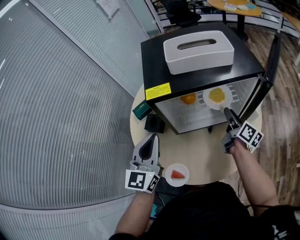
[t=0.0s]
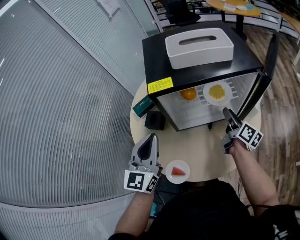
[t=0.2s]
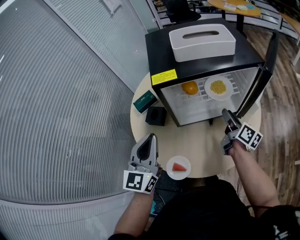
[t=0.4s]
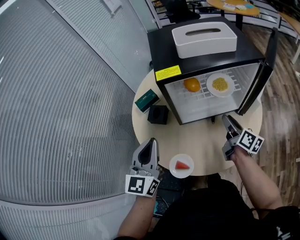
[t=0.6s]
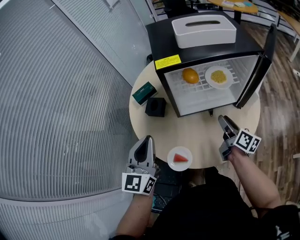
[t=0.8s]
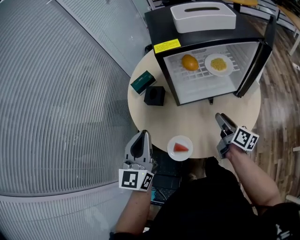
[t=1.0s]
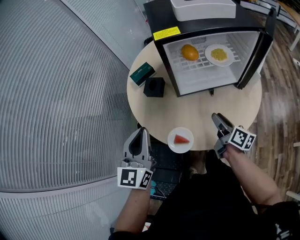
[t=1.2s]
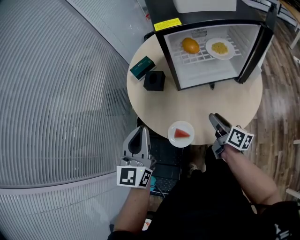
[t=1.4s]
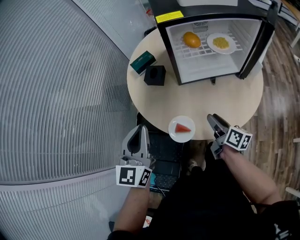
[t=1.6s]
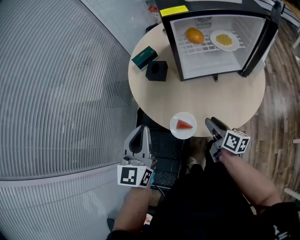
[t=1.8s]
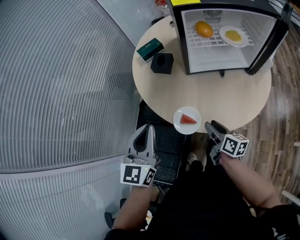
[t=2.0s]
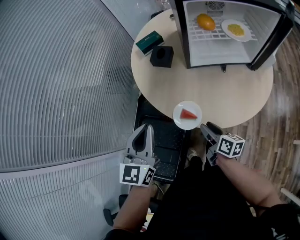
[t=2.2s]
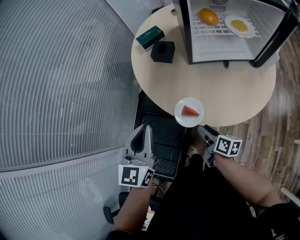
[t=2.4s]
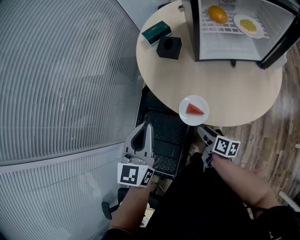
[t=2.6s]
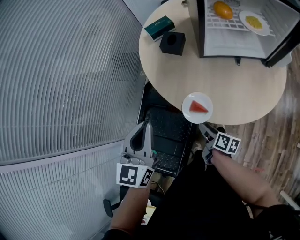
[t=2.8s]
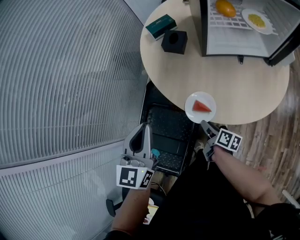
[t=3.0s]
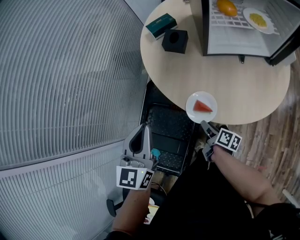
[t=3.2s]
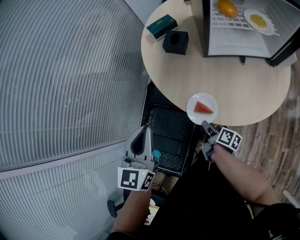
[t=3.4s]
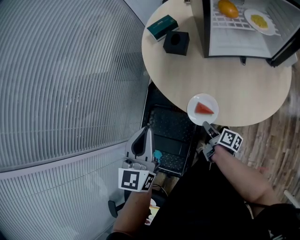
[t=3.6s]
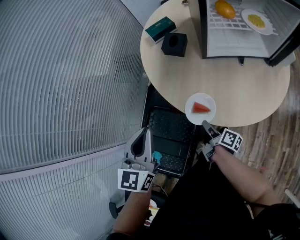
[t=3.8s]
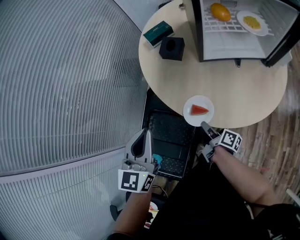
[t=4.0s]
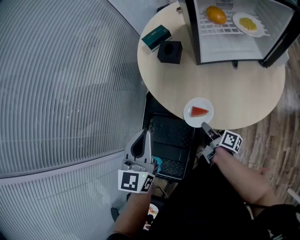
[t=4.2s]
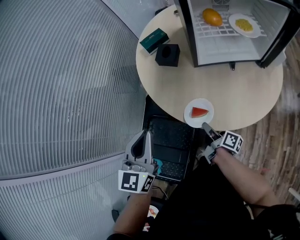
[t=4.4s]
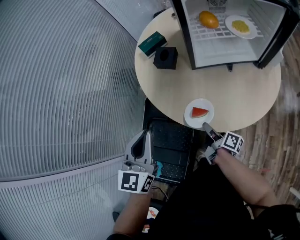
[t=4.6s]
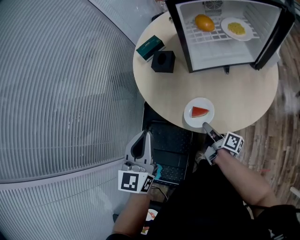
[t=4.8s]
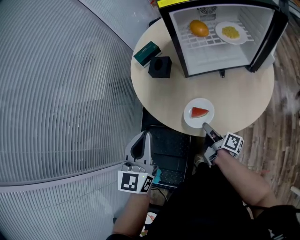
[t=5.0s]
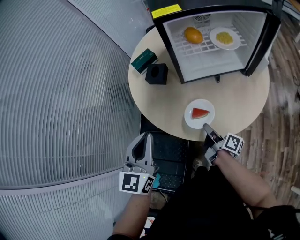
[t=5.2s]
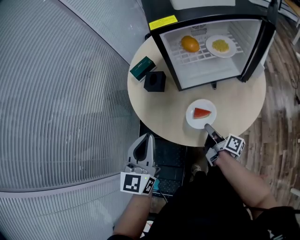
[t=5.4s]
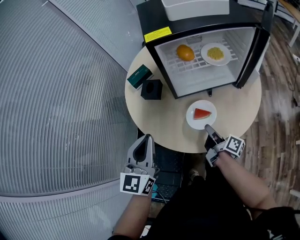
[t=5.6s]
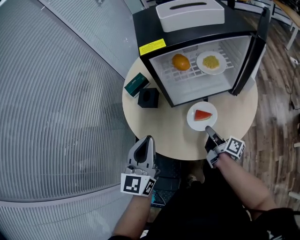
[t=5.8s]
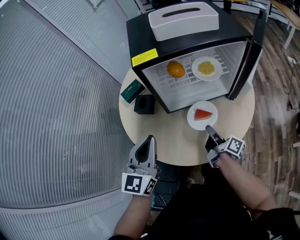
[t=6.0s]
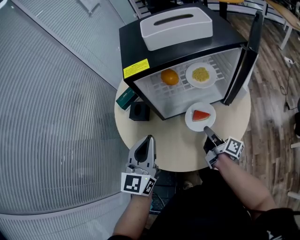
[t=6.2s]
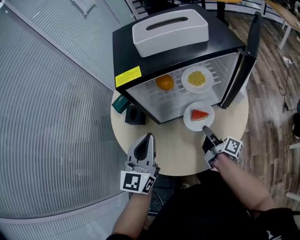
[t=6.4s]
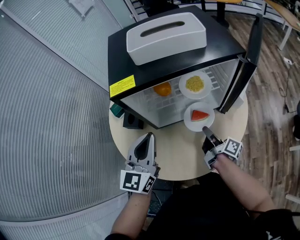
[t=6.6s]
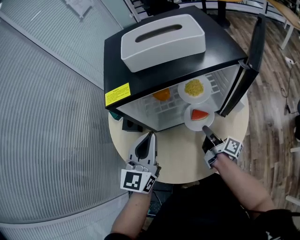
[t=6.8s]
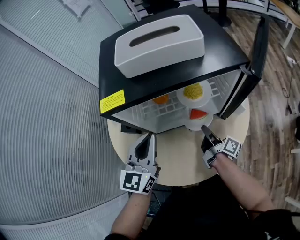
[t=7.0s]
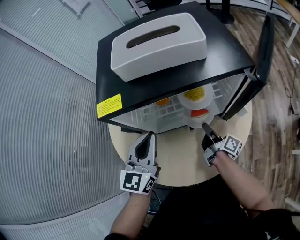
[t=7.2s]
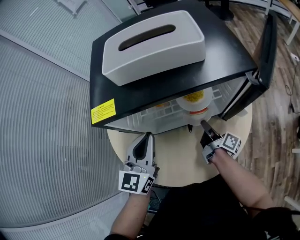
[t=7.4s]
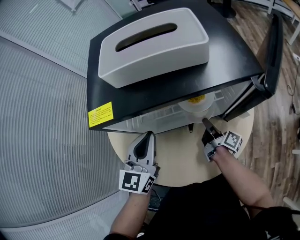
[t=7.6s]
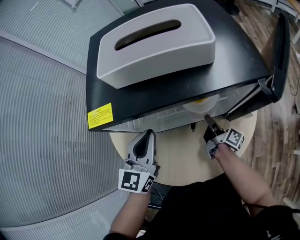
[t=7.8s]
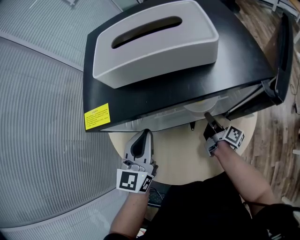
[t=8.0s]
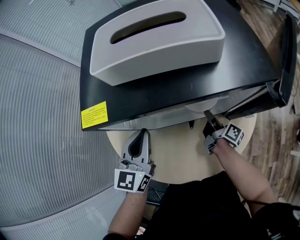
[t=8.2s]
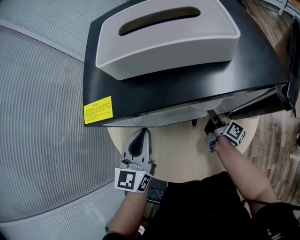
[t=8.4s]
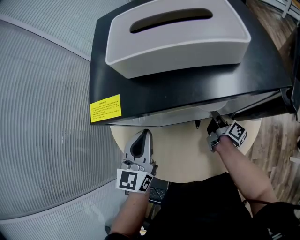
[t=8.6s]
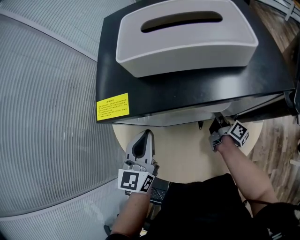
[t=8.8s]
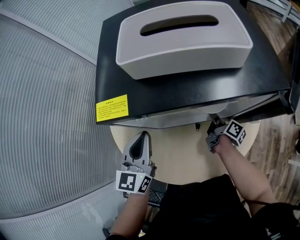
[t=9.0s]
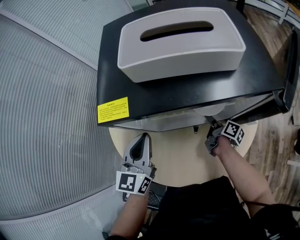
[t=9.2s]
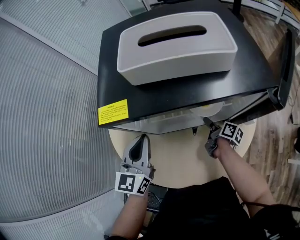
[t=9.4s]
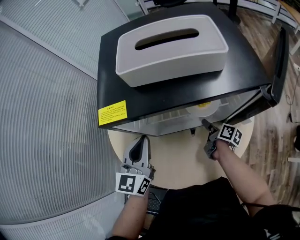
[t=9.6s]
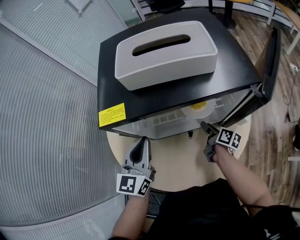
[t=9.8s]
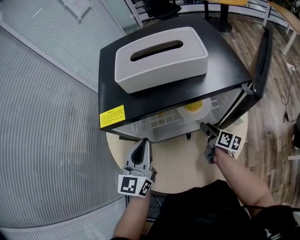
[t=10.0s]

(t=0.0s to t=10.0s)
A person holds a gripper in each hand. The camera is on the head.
t=0.0s - t=1.4s: The left gripper shifts about 20 cm backward and to the left. Meanwhile the right gripper moves backward, to the left and downward, some 25 cm.
t=1.4s - t=2.8s: The left gripper heads downward, to the left and backward, covering about 10 cm. Meanwhile the right gripper heads downward, to the left and backward, covering some 25 cm, and turns by approximately 20 degrees.
t=2.8s - t=4.2s: The right gripper closes.
t=4.2s - t=5.8s: The left gripper travels to the right, forward and upward by approximately 15 cm, while the right gripper heads to the right, upward and forward, covering approximately 25 cm, and rotates about 20 degrees.
t=5.8s - t=7.2s: The grippers both shift forward and to the right by roughly 20 cm.
t=7.2s - t=8.6s: The left gripper changes place by approximately 5 cm, while the right gripper moves forward and downward, about 10 cm.
t=8.6s - t=10.0s: The right gripper moves about 5 cm, changes its angle by about 20 degrees, and opens up.

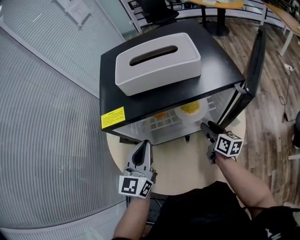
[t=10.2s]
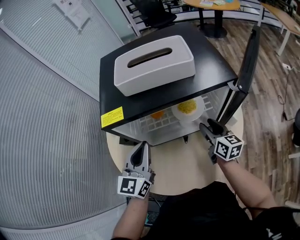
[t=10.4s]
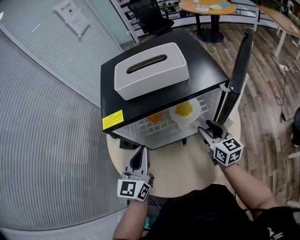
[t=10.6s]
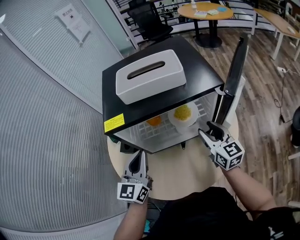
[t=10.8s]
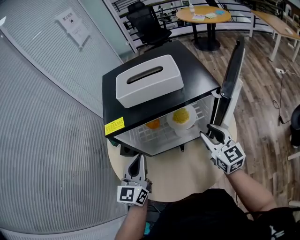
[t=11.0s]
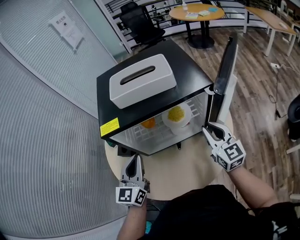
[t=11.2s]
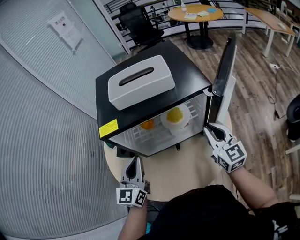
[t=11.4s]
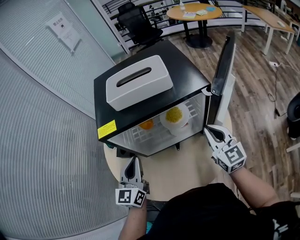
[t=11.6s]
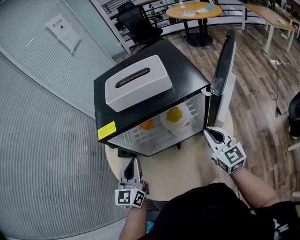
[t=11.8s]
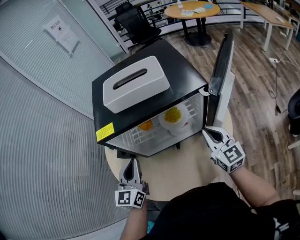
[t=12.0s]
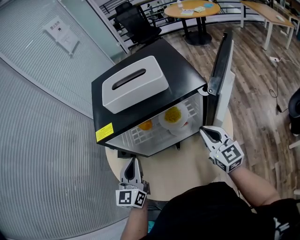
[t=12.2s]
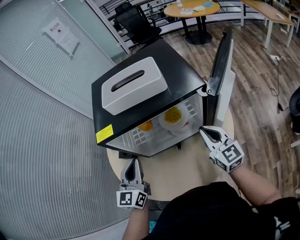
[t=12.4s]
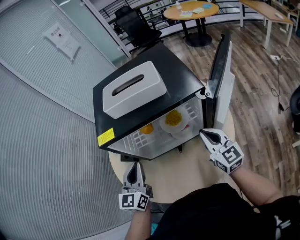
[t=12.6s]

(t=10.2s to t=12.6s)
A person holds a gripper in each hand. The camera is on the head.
t=10.2s - t=11.4s: The right gripper travels upward and backward by approximately 15 cm, rolls counterclockwise, seen from behind, by some 40 degrees, and closes up.
t=11.4s - t=12.6s: The grippers stay close to where they were, moving slightly.

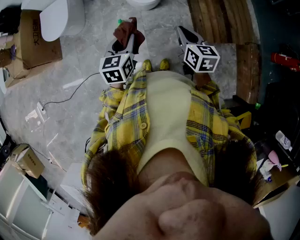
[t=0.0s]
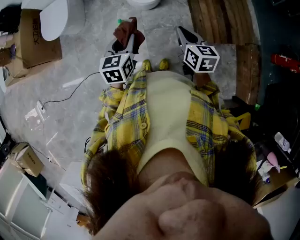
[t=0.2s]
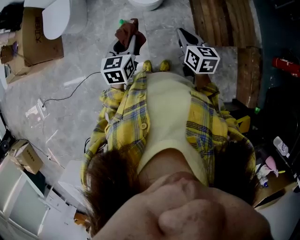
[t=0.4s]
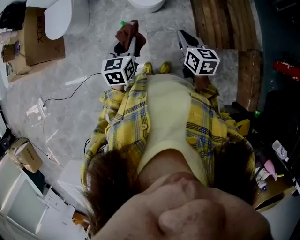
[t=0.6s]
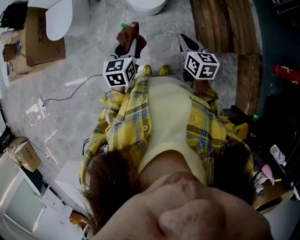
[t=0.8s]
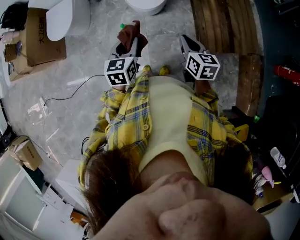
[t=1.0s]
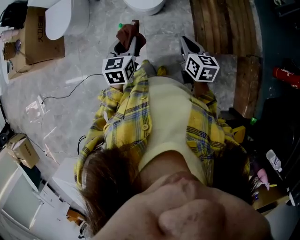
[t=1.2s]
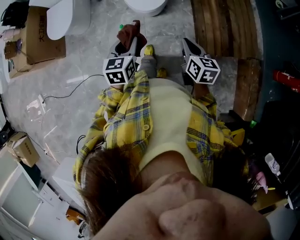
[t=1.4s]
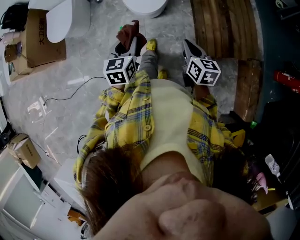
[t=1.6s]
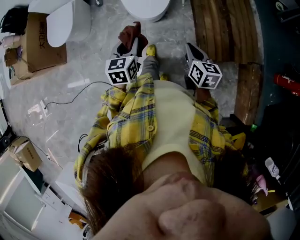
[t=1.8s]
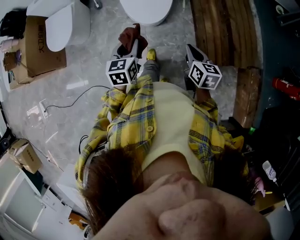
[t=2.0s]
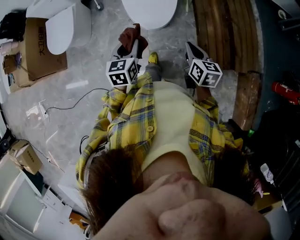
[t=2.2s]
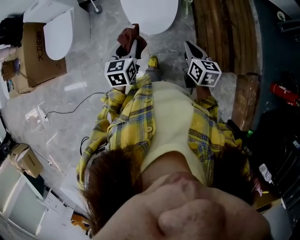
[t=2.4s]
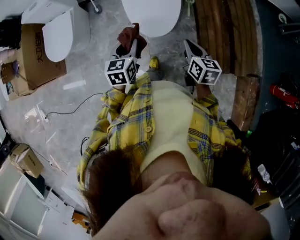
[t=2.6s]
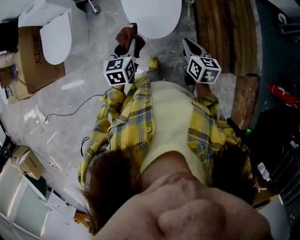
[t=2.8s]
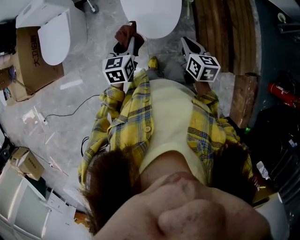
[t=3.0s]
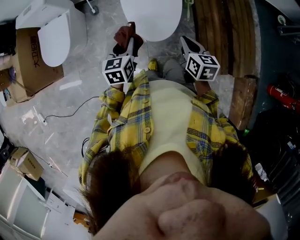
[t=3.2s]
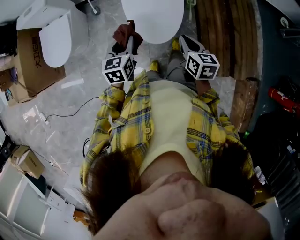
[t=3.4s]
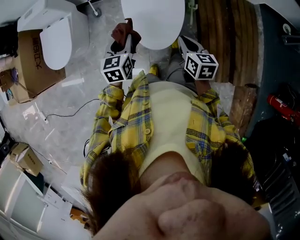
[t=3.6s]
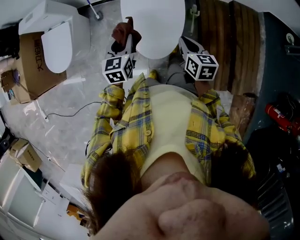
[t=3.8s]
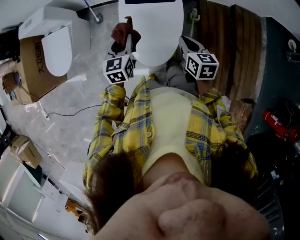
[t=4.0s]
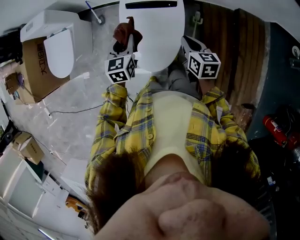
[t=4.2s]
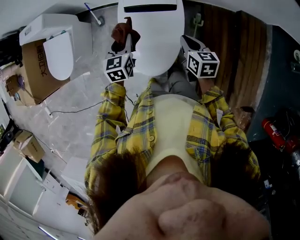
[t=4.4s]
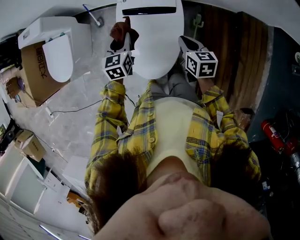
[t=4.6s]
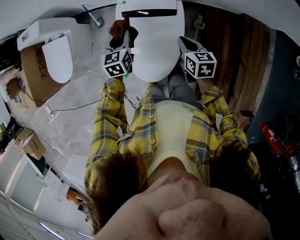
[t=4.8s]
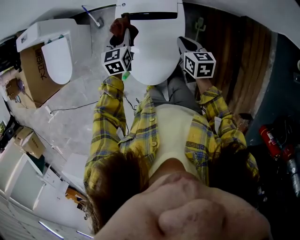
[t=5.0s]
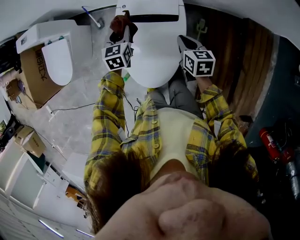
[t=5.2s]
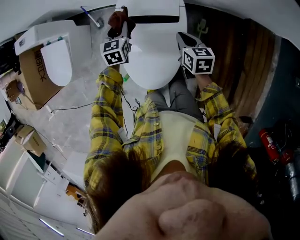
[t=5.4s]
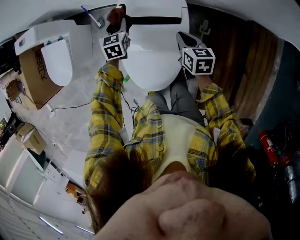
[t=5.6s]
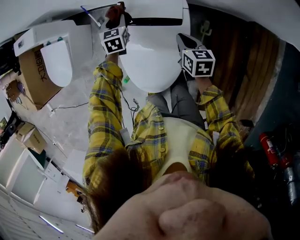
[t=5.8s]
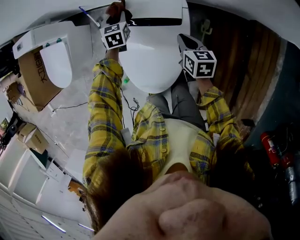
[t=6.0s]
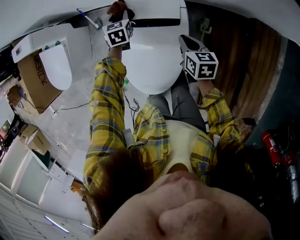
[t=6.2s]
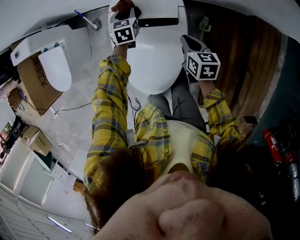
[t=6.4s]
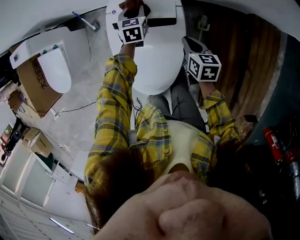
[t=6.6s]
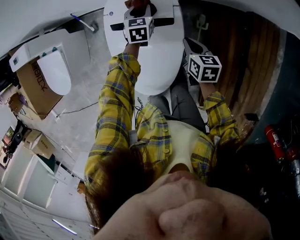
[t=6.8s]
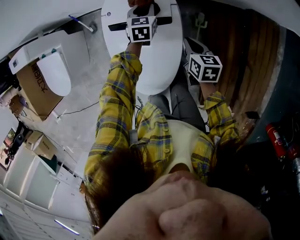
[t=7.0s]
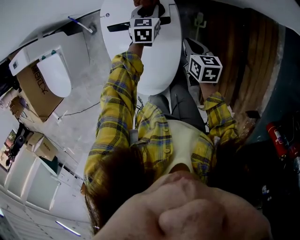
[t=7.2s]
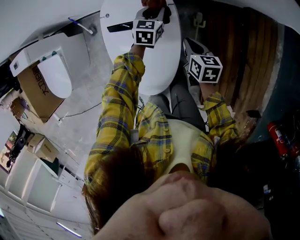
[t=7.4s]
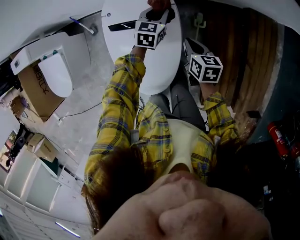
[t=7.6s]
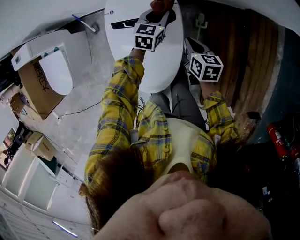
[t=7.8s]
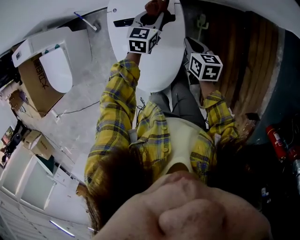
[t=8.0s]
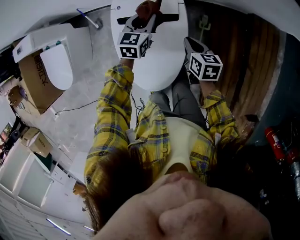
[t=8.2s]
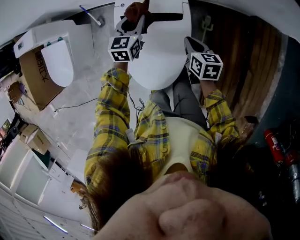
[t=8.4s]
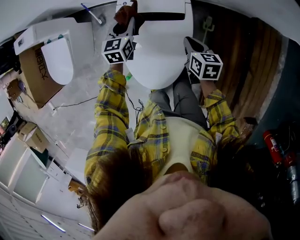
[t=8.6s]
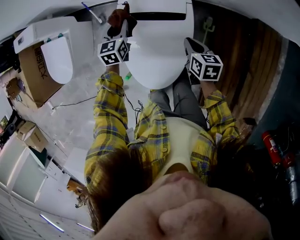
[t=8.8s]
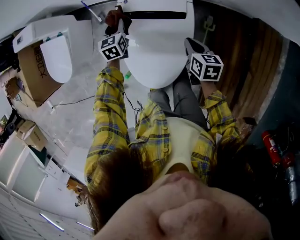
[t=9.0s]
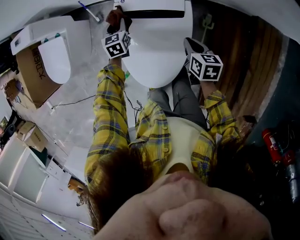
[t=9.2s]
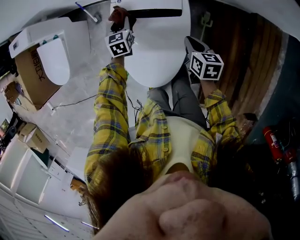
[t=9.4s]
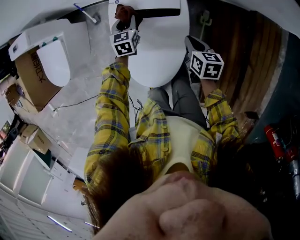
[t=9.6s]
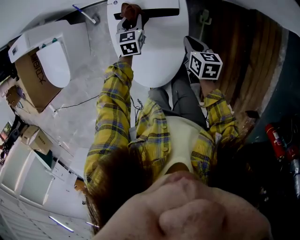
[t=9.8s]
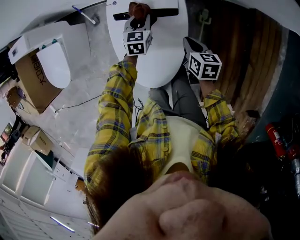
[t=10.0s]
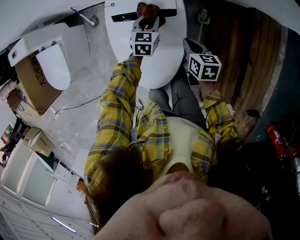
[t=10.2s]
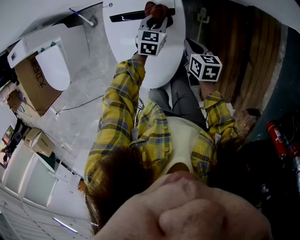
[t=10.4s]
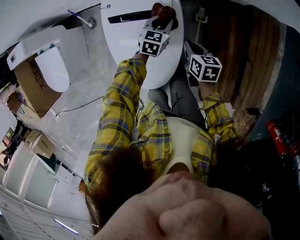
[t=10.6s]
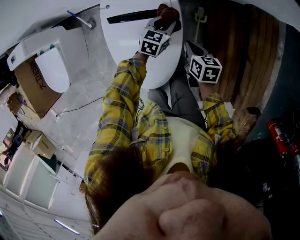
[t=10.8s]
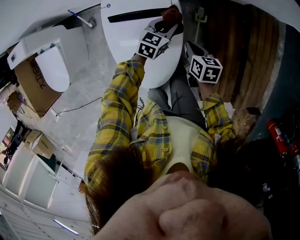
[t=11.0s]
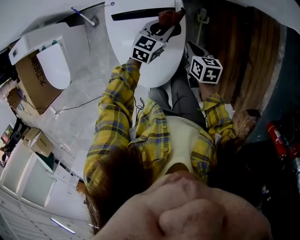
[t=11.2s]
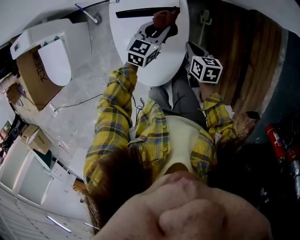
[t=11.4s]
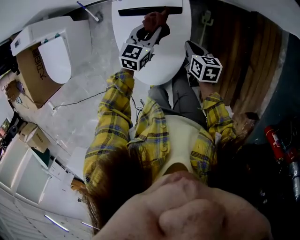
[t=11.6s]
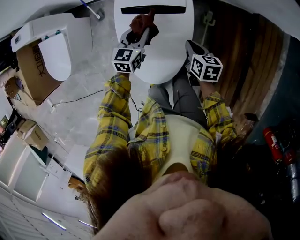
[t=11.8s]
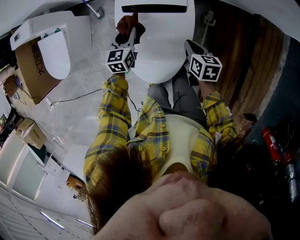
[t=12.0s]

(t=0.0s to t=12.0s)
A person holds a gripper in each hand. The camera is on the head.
t=0.0s - t=1.6s: The left gripper is displaced to the right and forward by some 10 cm, while the right gripper moves to the right, about 10 cm.
t=1.6s - t=3.0s: The grippers both shift forward by roughly 25 cm.
t=3.0s - t=4.4s: The grippers both shift forward by roughly 25 cm.
t=4.4s - t=6.0s: The left gripper is displaced forward and downward by some 25 cm; the right gripper shifts approximately 15 cm forward and downward.
t=6.0s - t=7.6s: The right gripper travels to the right by some 5 cm; the left gripper travels to the right by roughly 25 cm, and swivels roughly 30 degrees.
t=7.6s - t=9.0s: The left gripper shifts approximately 30 cm to the left, and swivels roughly 30 degrees. The right gripper travels to the left by about 5 cm.
t=9.0s - t=10.4s: The left gripper travels to the right by roughly 25 cm, and turns by approximately 30 degrees.
t=10.4s - t=12.0s: The left gripper moves to the left and backward, approximately 20 cm.
